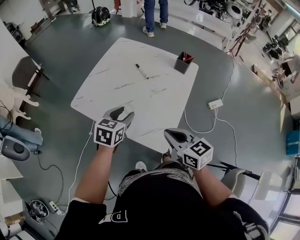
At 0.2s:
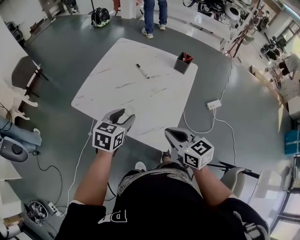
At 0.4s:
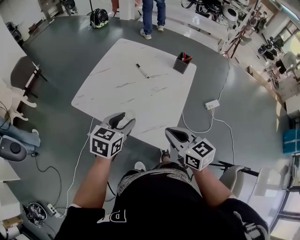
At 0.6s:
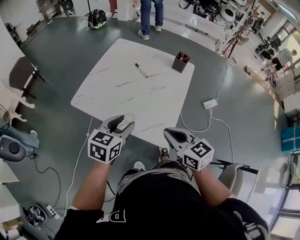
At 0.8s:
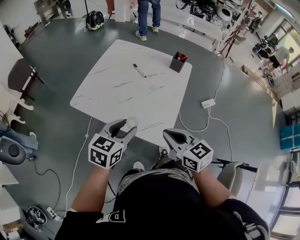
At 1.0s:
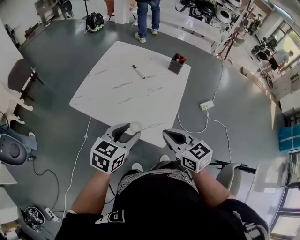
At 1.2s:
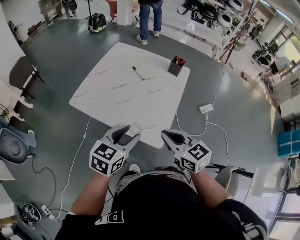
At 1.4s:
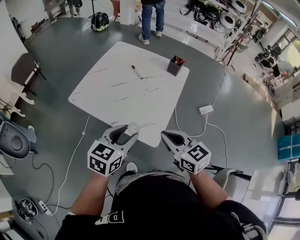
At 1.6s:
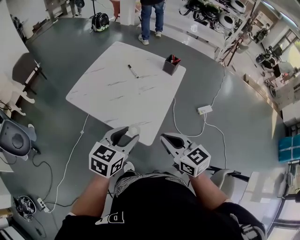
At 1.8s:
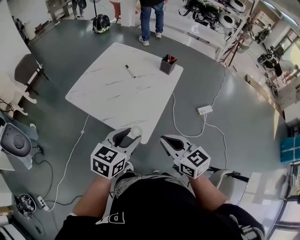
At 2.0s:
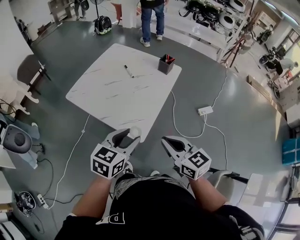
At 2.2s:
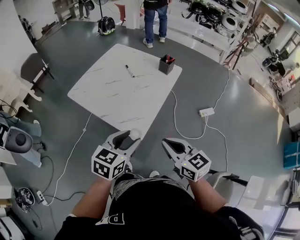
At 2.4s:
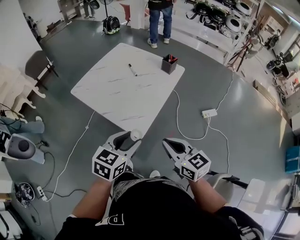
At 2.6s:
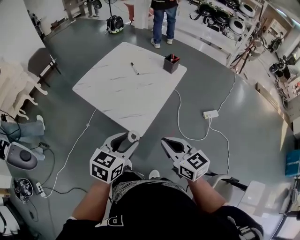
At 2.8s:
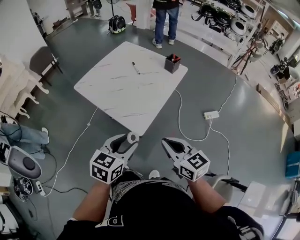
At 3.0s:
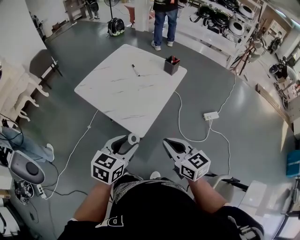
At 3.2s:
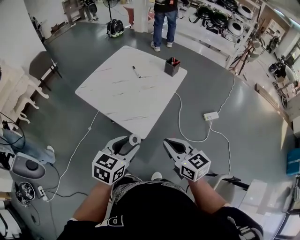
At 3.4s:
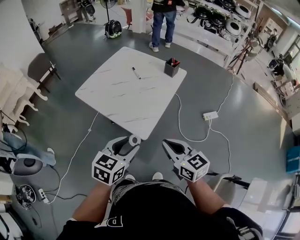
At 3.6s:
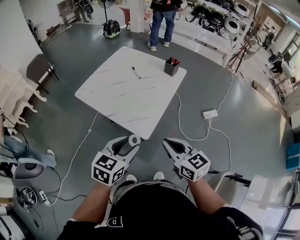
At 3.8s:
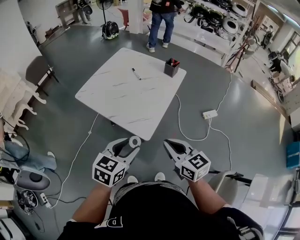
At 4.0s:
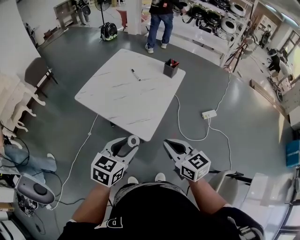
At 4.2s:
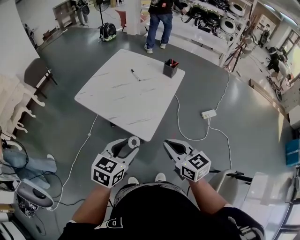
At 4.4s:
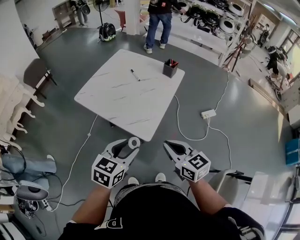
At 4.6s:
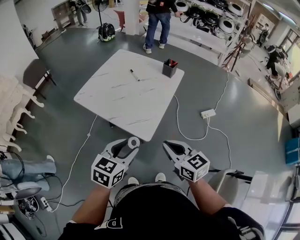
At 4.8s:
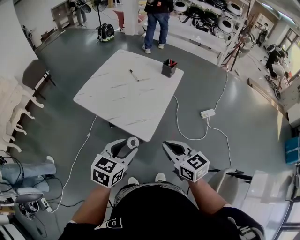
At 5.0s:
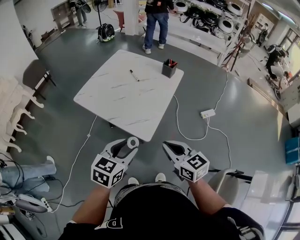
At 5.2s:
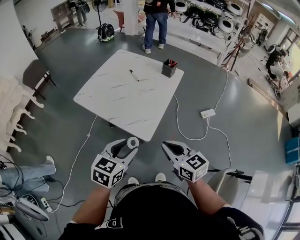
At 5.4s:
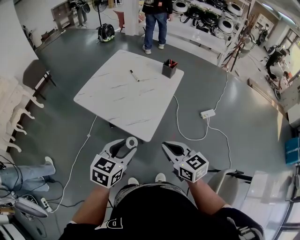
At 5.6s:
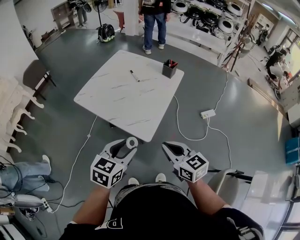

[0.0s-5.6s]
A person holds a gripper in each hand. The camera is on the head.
0.0s to 1.4s: The left gripper shifts roughly 20 cm backward and upward. The right gripper shifts about 10 cm backward and upward.
1.4s to 2.8s: The left gripper moves backward and to the right, about 20 cm; the right gripper travels to the right and backward by some 15 cm.
2.8s to 4.2s: Both grippers travel together to the left, some 5 cm.
4.2s to 5.6s: There are only small adjustments of the grippers.

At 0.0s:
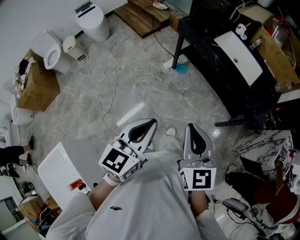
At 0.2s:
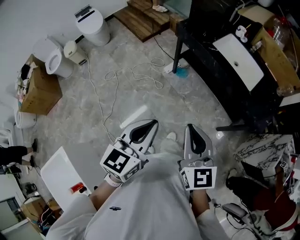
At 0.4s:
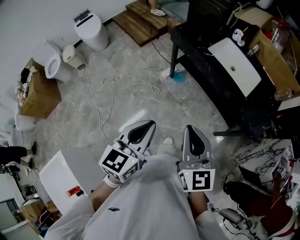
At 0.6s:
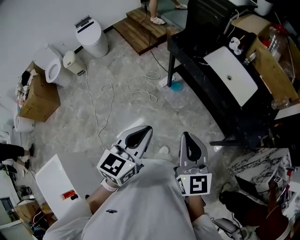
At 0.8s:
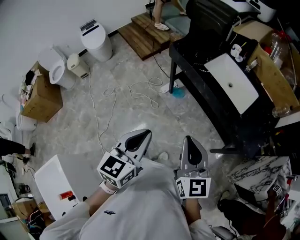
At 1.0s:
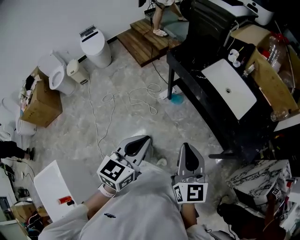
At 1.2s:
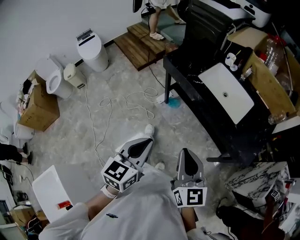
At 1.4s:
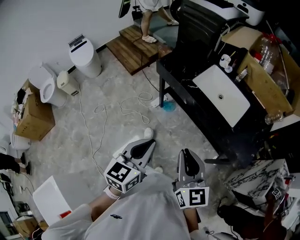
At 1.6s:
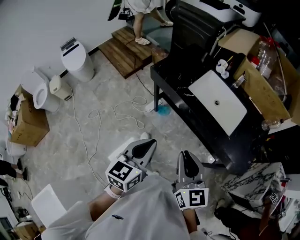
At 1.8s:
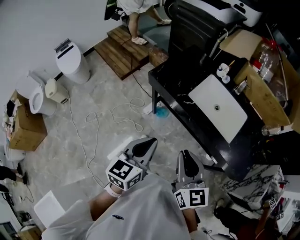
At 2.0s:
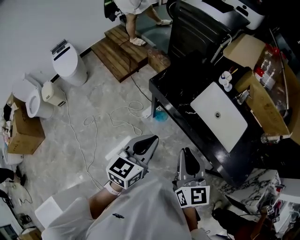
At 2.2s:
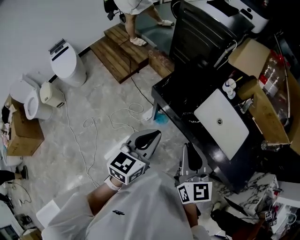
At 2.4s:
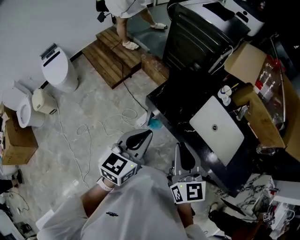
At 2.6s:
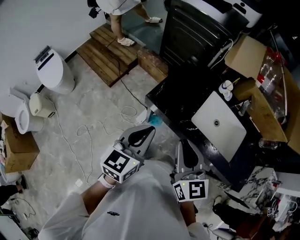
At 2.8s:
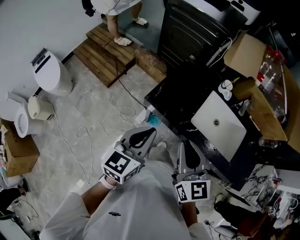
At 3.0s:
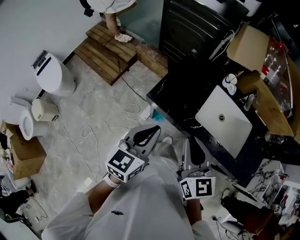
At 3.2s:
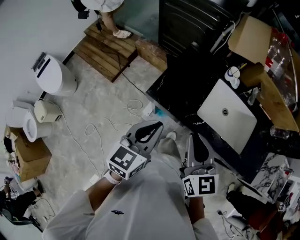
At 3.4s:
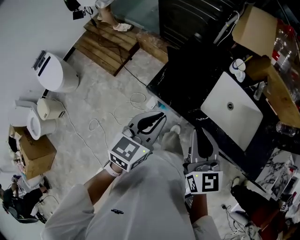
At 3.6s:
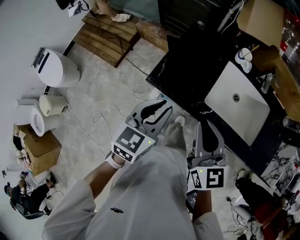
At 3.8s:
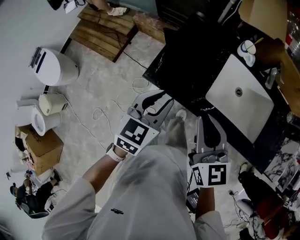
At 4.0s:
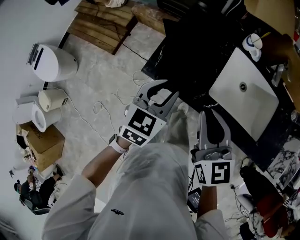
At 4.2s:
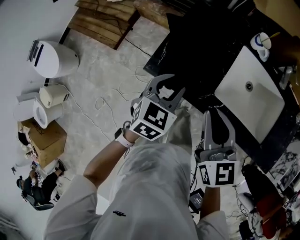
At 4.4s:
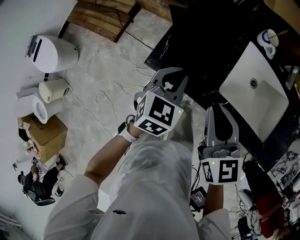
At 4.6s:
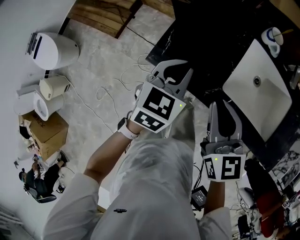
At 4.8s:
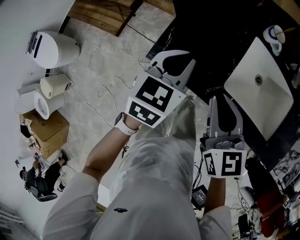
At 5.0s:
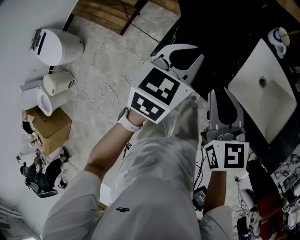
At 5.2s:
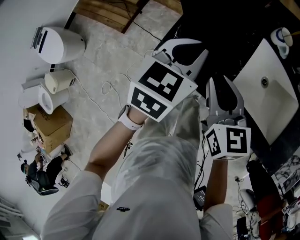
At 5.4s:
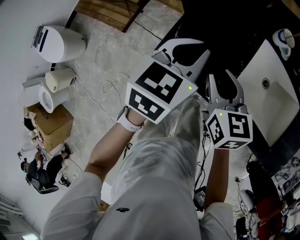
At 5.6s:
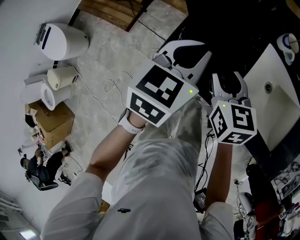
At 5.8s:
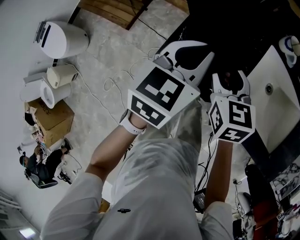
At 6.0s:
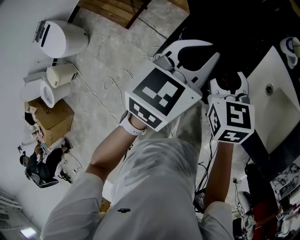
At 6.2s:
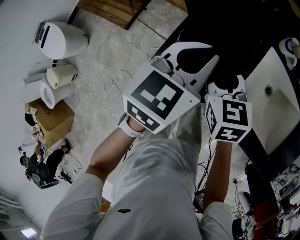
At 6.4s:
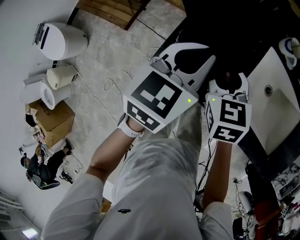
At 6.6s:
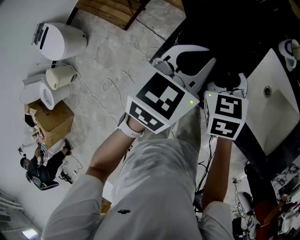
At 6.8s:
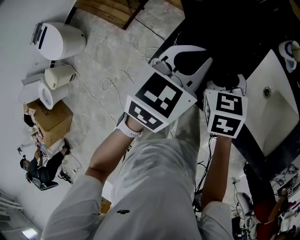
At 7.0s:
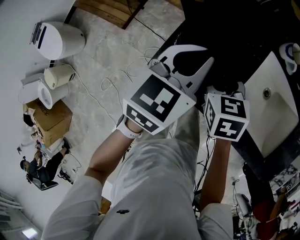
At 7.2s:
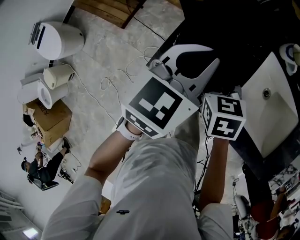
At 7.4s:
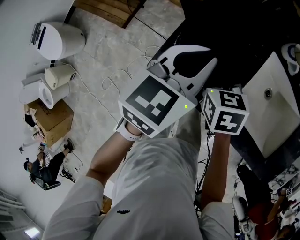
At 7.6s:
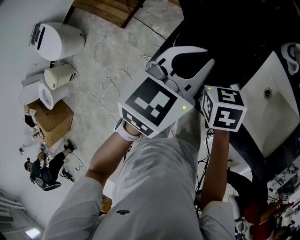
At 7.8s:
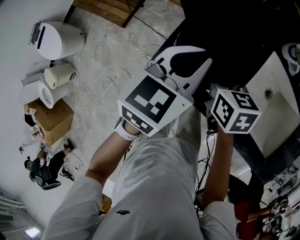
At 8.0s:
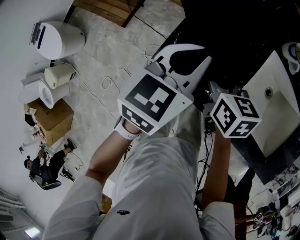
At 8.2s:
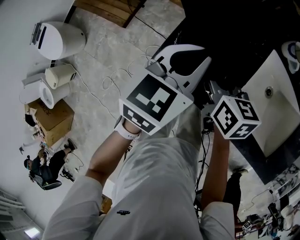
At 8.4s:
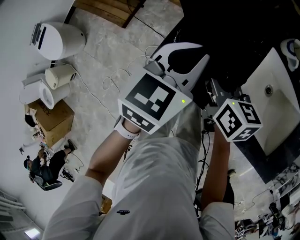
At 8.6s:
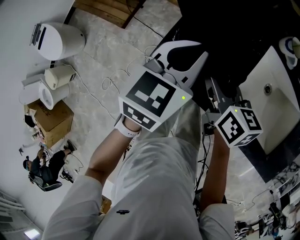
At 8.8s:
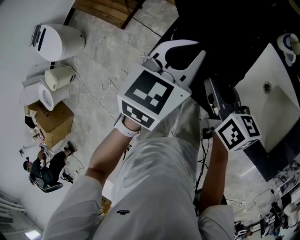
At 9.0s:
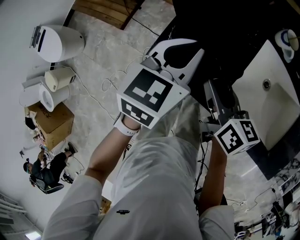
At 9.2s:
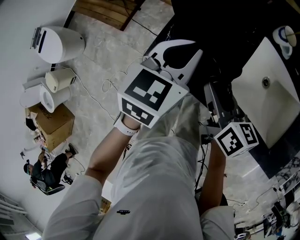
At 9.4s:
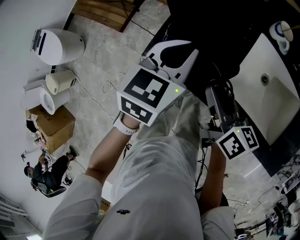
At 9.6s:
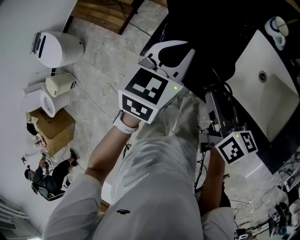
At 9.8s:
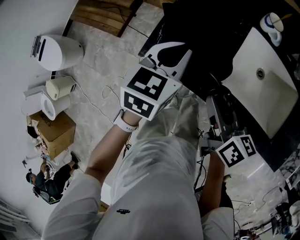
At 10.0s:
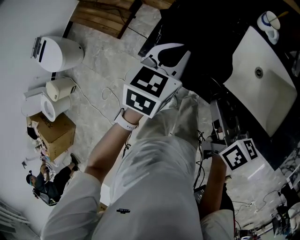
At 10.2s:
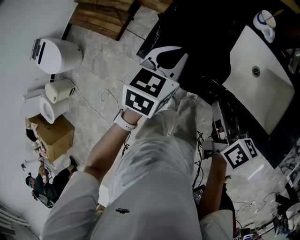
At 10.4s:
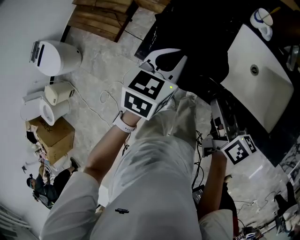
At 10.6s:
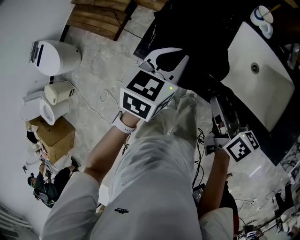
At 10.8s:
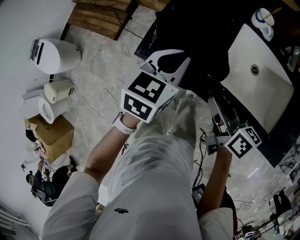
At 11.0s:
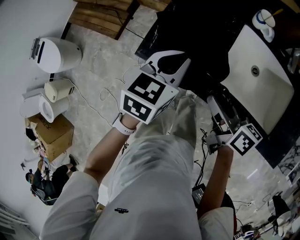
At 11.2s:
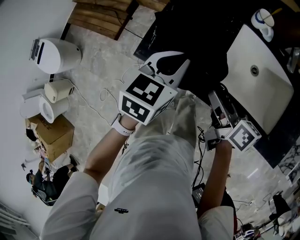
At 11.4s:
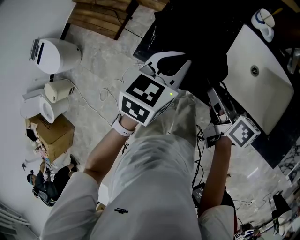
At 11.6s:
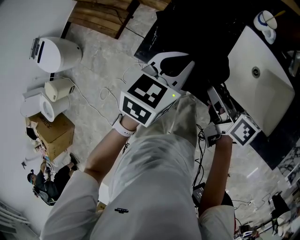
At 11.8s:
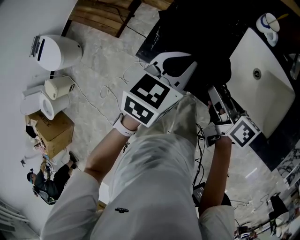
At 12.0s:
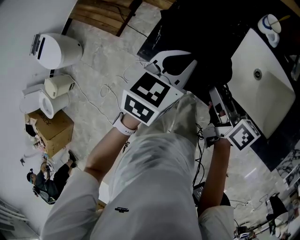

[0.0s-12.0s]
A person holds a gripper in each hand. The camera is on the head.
0.0s to 1.6s: Both grippers travel together forward and to the right, about 30 cm.
1.6s to 3.0s: Both grippers travel together forward and to the left, about 35 cm.
3.0s to 4.4s: Both grippers move downward and forward, some 20 cm. The left gripper turns by approximately 30 degrees.
4.4s to 6.0s: The right gripper shifts about 15 cm forward, downward and to the left, and opens its fingers. Meanwhile the left gripper goes some 10 cm forward and upward.
6.0s to 7.6s: The right gripper is displaced downward by about 10 cm.
7.6s to 9.0s: The right gripper goes roughly 10 cm upward and backward, and turns by approximately 40 degrees.
9.0s to 10.4s: The left gripper is displaced backward by about 5 cm. Meanwhile the right gripper goes some 15 cm backward and to the right.
10.4s to 12.0s: The right gripper moves approximately 5 cm.

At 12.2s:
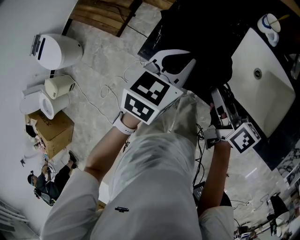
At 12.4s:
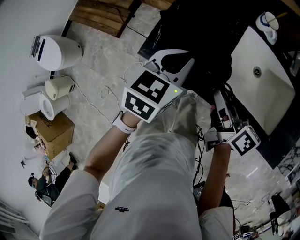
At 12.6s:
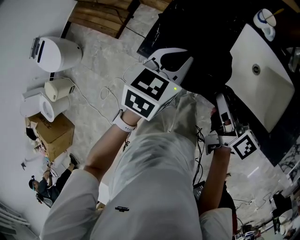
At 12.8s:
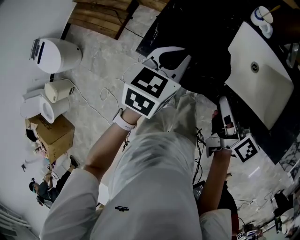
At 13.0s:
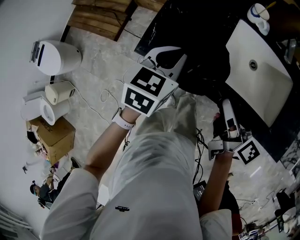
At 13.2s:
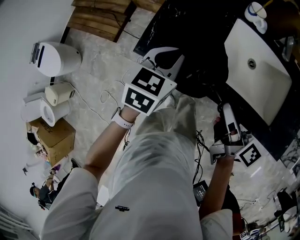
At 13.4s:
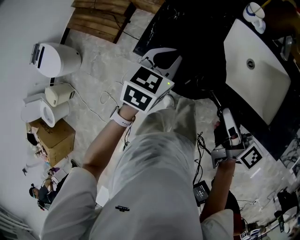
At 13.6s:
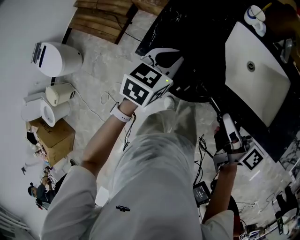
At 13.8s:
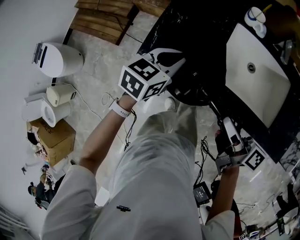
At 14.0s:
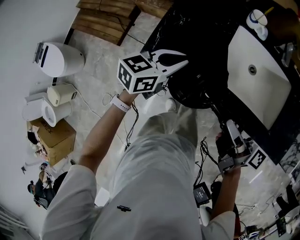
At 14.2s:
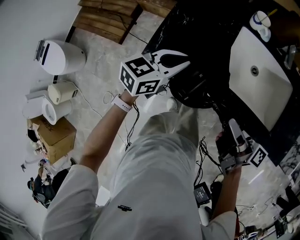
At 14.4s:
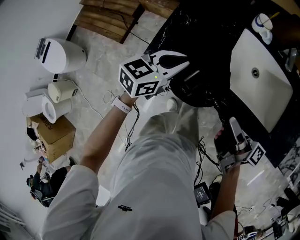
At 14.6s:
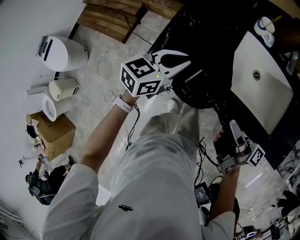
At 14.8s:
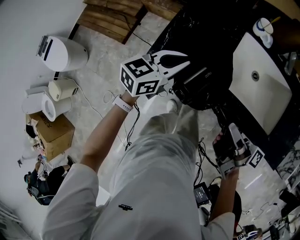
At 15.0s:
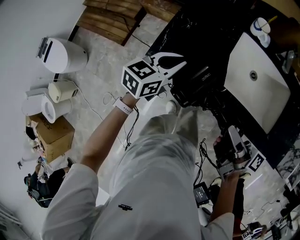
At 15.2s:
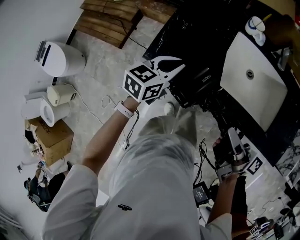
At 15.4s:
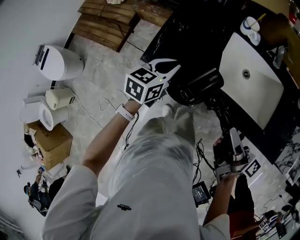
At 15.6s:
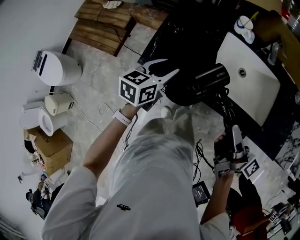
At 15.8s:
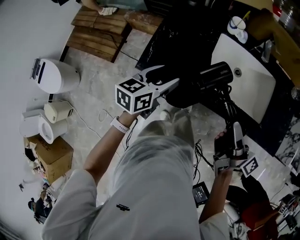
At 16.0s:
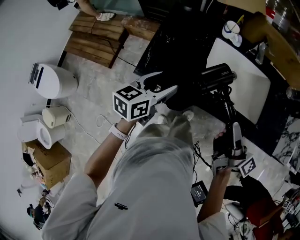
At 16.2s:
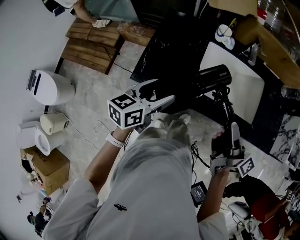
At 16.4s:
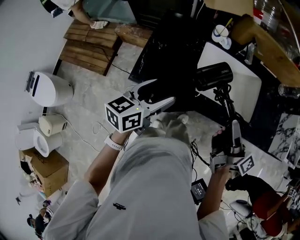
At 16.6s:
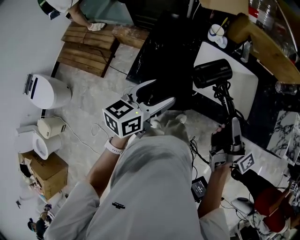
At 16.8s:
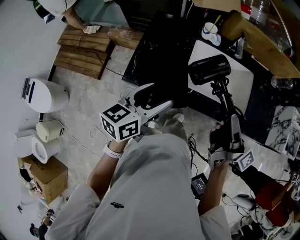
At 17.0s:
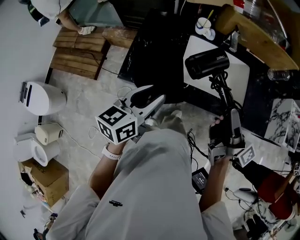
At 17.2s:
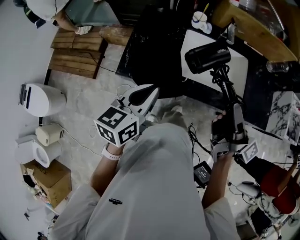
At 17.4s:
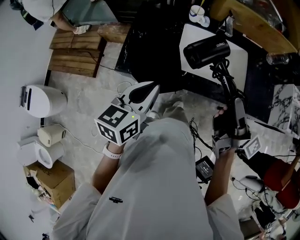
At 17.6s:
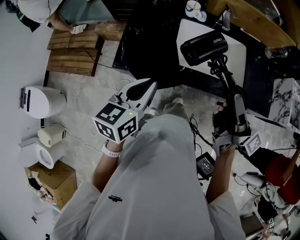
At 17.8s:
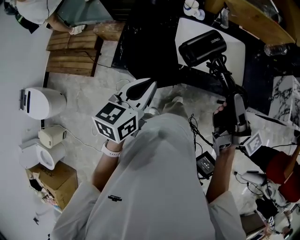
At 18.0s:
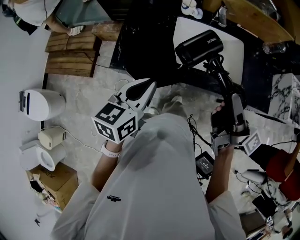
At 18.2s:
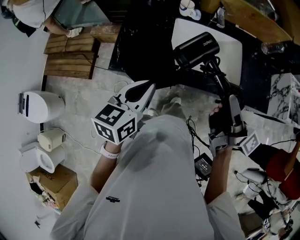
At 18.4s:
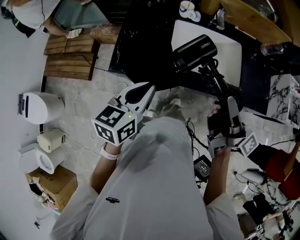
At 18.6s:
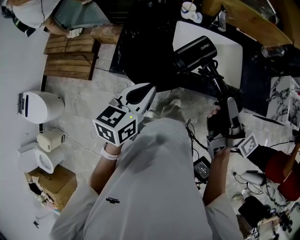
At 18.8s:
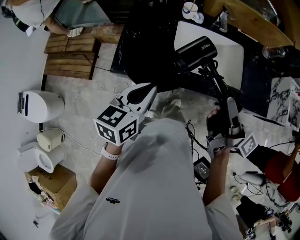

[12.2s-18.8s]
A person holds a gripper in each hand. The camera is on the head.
12.2s to 13.8s: The right gripper heads backward and to the right, covering some 10 cm.
13.8s to 15.4s: The right gripper ends up roughly 5 cm from where it was.
15.4s to 17.2s: The left gripper is displaced upward, backward and to the right by roughly 20 cm, and opens and closes again. Meanwhile the right gripper shifts roughly 15 cm upward and to the right, and rotates approximately 30 degrees.
17.2s to 18.8s: The grippers stay close to where they were, moving slightly.
